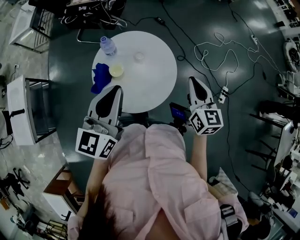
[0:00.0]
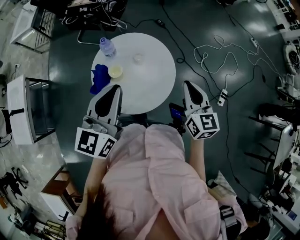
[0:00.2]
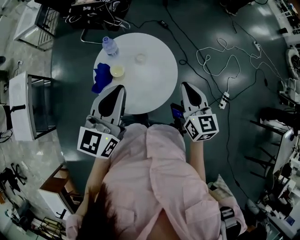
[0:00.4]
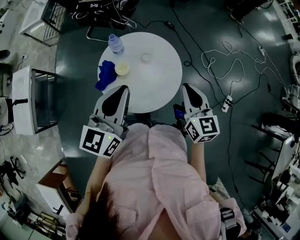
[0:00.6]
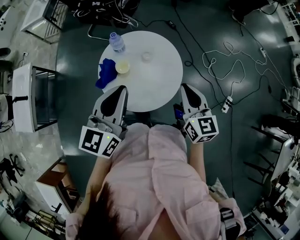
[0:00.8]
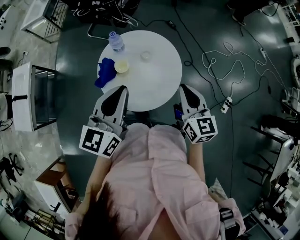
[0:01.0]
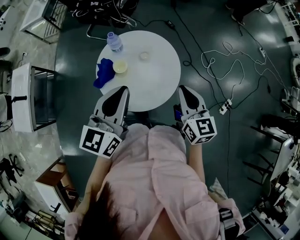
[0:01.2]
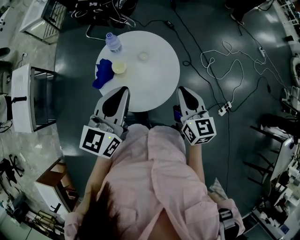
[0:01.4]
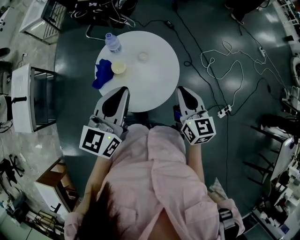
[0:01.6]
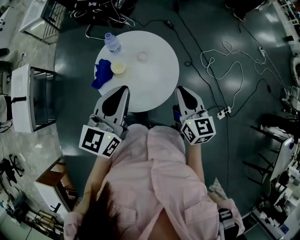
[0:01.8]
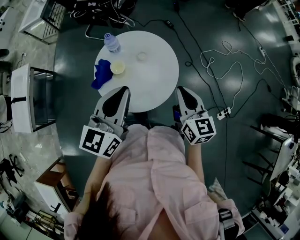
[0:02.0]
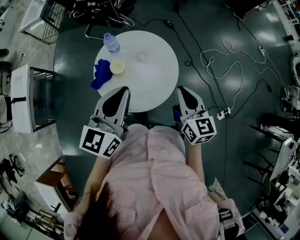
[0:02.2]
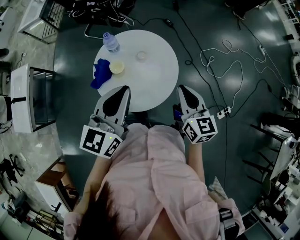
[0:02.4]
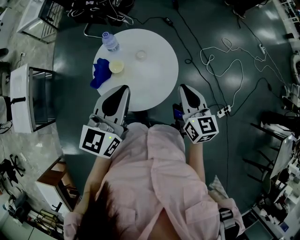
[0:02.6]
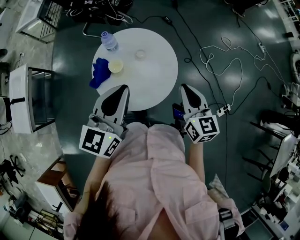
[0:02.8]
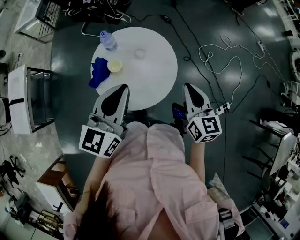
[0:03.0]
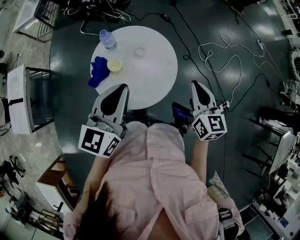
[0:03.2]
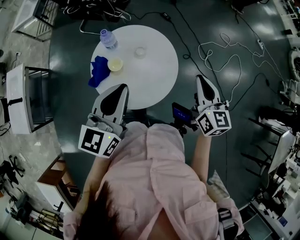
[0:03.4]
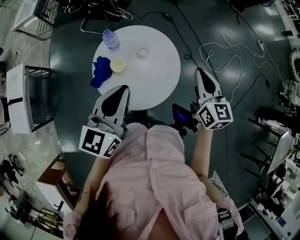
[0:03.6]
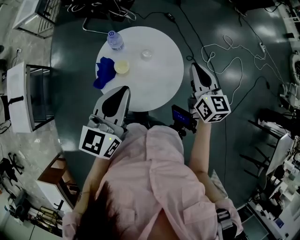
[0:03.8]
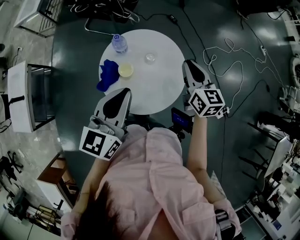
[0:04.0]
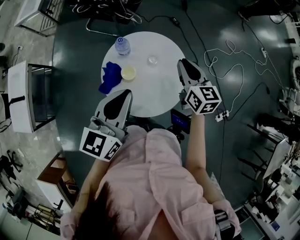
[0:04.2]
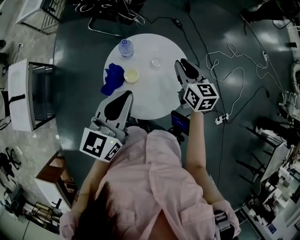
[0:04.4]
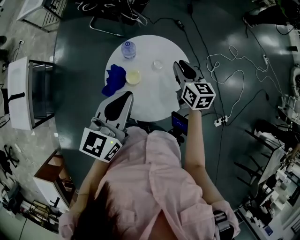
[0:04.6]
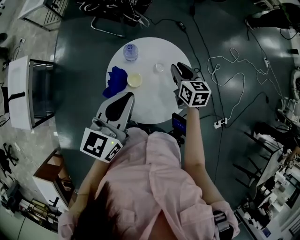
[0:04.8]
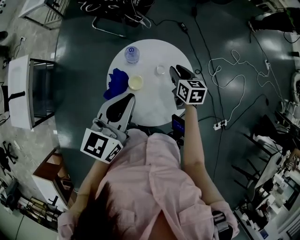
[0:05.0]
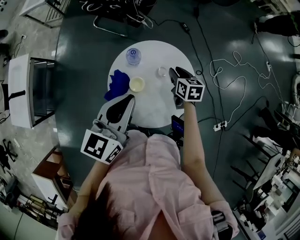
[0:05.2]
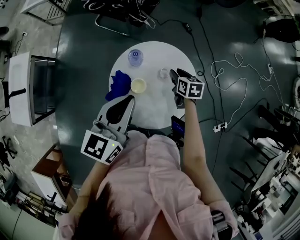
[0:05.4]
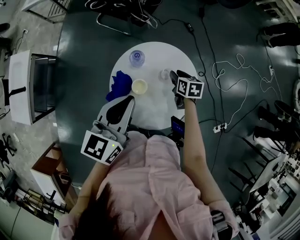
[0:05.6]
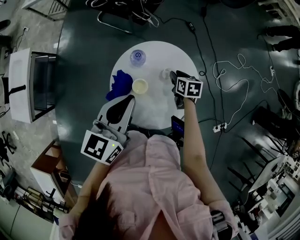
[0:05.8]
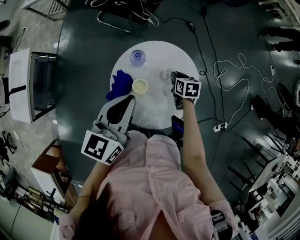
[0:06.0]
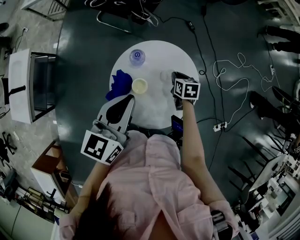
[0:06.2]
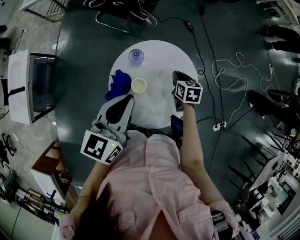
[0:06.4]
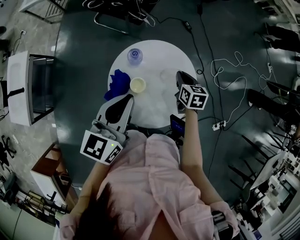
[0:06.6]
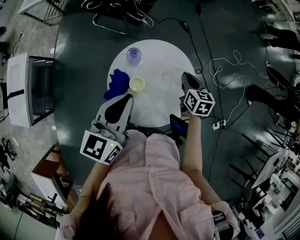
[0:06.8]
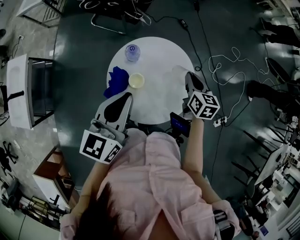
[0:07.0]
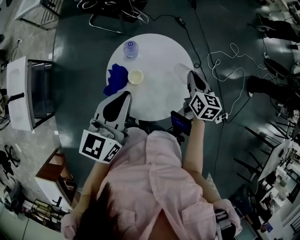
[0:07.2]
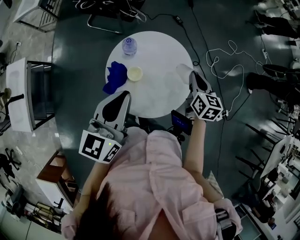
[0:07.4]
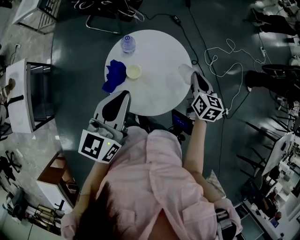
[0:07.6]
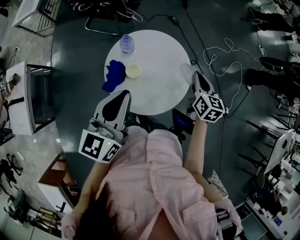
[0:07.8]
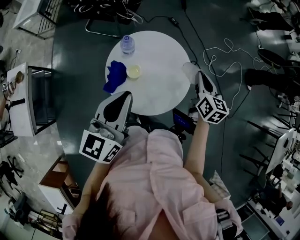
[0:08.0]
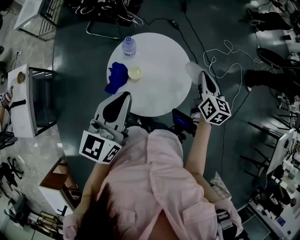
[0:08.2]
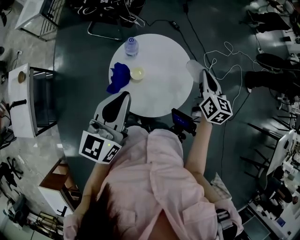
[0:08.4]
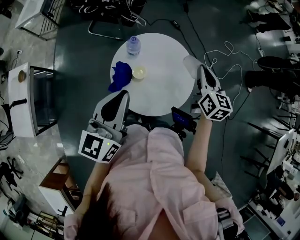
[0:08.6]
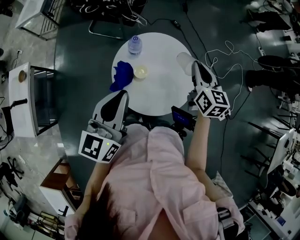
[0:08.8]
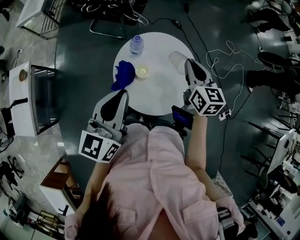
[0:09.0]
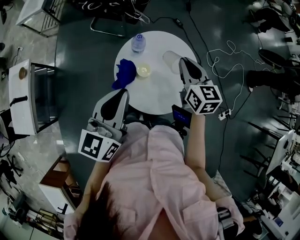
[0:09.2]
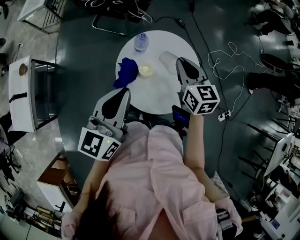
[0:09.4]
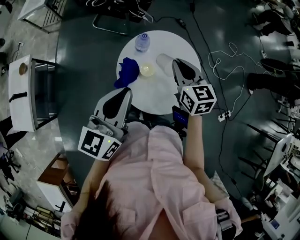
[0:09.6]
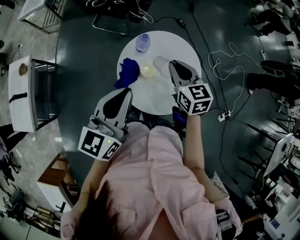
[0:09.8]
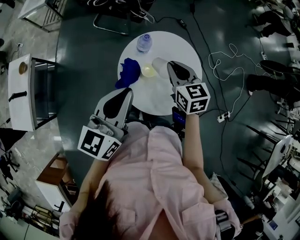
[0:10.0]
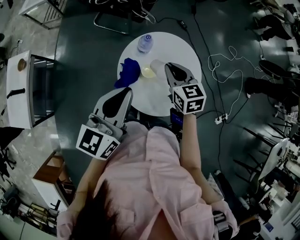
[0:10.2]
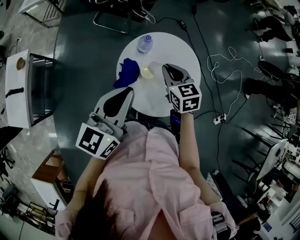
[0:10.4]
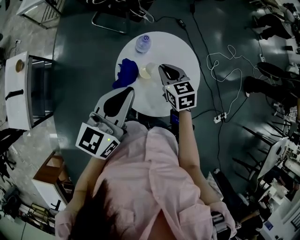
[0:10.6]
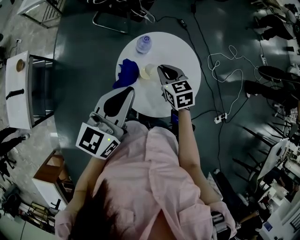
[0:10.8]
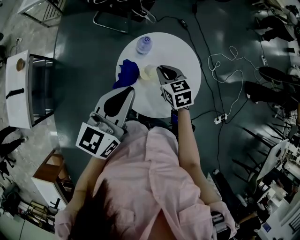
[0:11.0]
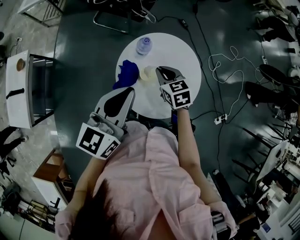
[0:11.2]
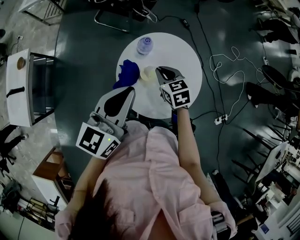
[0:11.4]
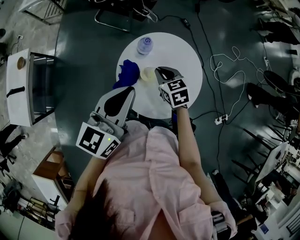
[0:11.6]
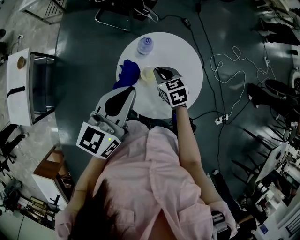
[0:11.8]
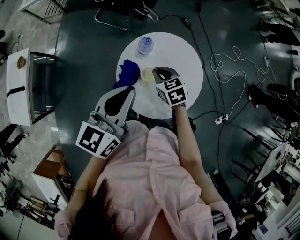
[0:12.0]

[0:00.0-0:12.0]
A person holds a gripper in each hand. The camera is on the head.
0:00.0 to 0:03.0: The grippers make only small movements.
0:03.0 to 0:04.4: The left gripper moves to the left, roughly 5 cm; the right gripper heads forward and to the left, covering some 20 cm.
0:04.4 to 0:06.0: The left gripper shifts about 5 cm forward, while the right gripper travels downward by some 20 cm, and tips its fingers downward by about 30 degrees.
0:06.0 to 0:07.6: The left gripper moves backward, about 5 cm. The right gripper goes some 20 cm upward, to the right and backward, and swivels approximately 30 degrees.
0:07.6 to 0:09.0: The right gripper heads to the left and upward, covering about 15 cm. Meanwhile the left gripper shifts by approximately 5 cm.
0:09.0 to 0:10.4: The right gripper shifts approximately 15 cm to the left and downward, and rotates roughly 20 degrees.
0:10.4 to 0:12.0: The right gripper heads downward, covering roughly 10 cm.

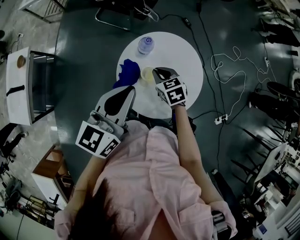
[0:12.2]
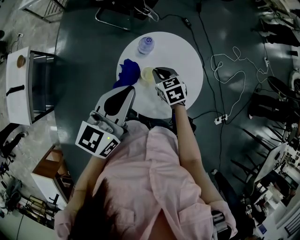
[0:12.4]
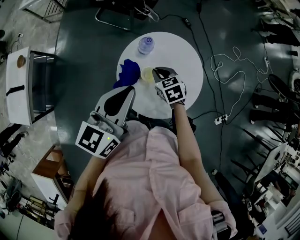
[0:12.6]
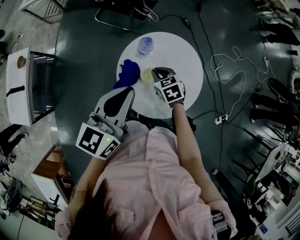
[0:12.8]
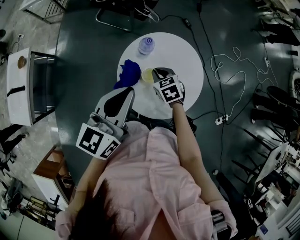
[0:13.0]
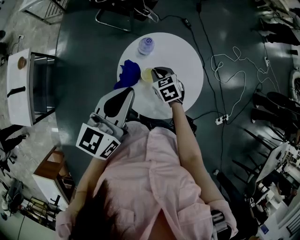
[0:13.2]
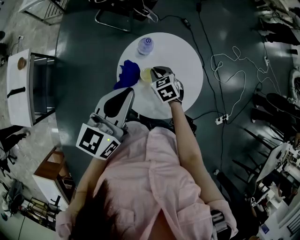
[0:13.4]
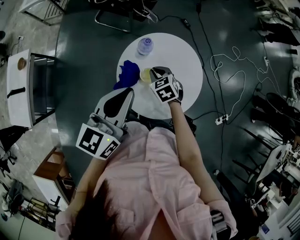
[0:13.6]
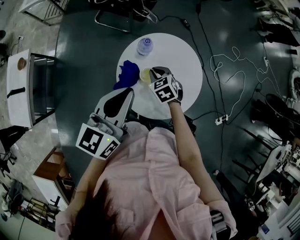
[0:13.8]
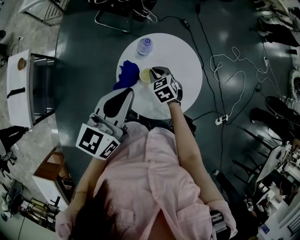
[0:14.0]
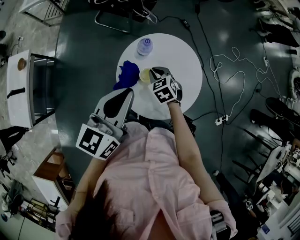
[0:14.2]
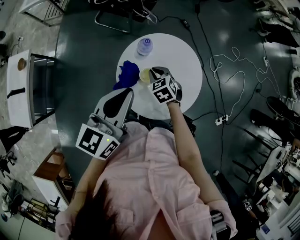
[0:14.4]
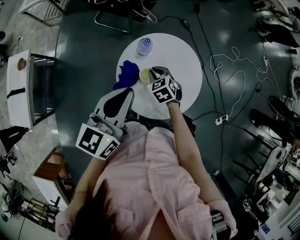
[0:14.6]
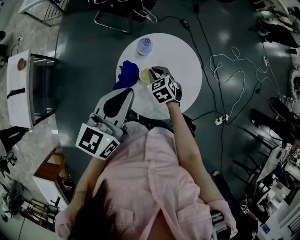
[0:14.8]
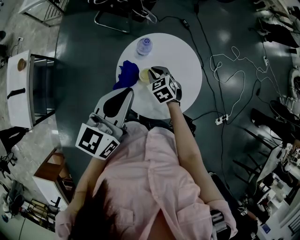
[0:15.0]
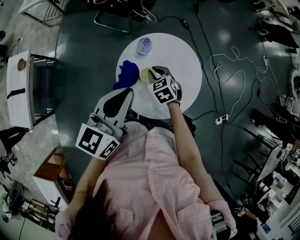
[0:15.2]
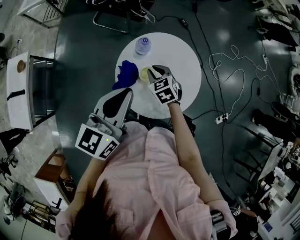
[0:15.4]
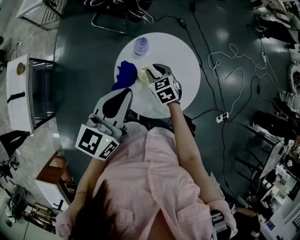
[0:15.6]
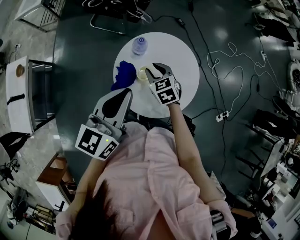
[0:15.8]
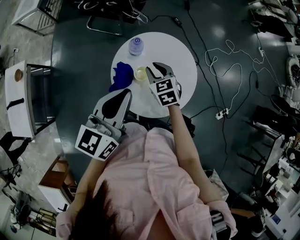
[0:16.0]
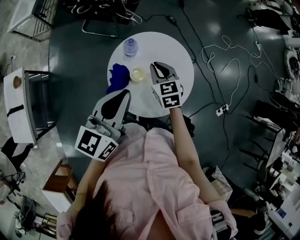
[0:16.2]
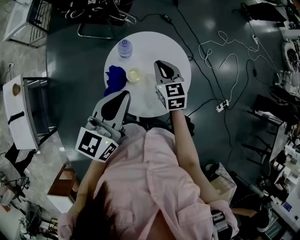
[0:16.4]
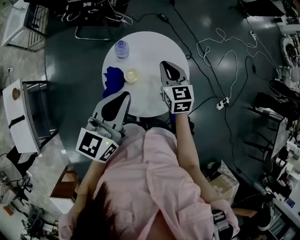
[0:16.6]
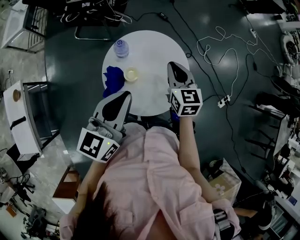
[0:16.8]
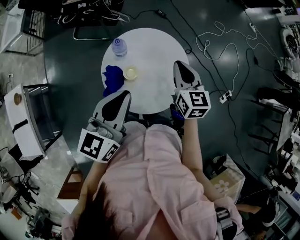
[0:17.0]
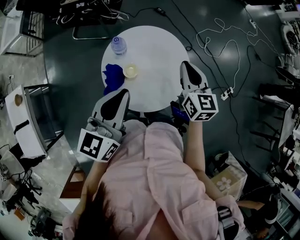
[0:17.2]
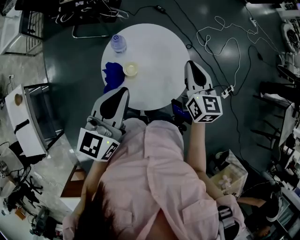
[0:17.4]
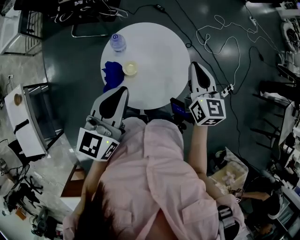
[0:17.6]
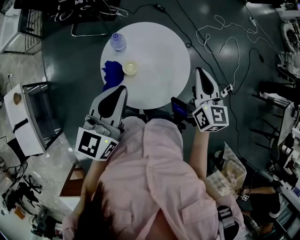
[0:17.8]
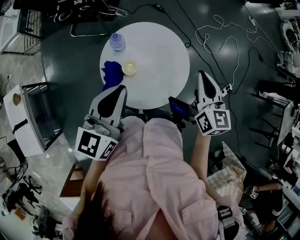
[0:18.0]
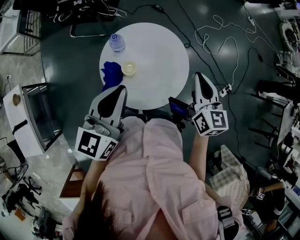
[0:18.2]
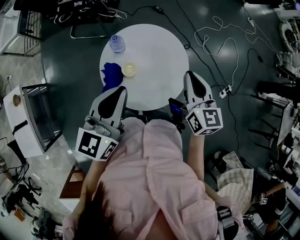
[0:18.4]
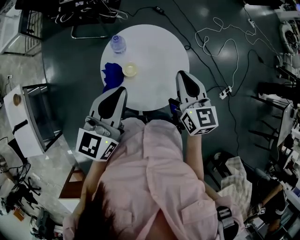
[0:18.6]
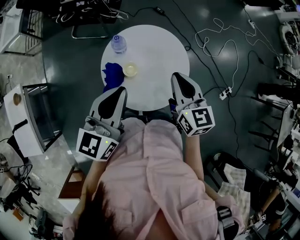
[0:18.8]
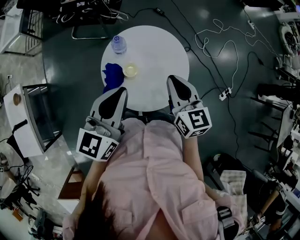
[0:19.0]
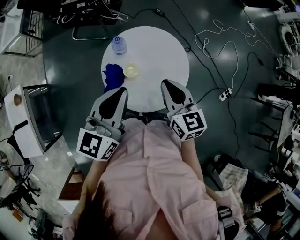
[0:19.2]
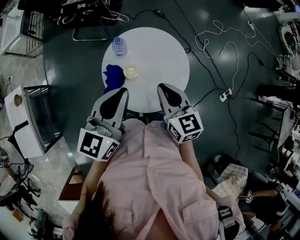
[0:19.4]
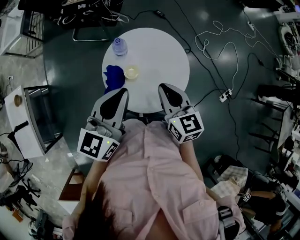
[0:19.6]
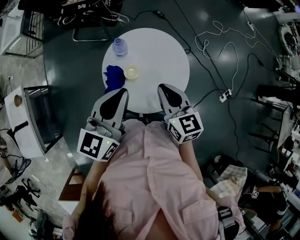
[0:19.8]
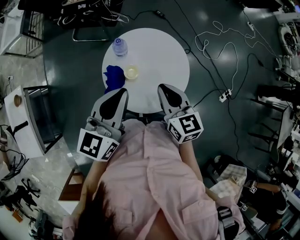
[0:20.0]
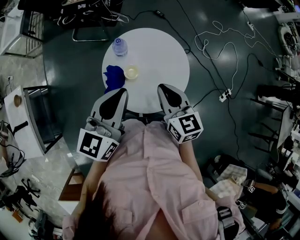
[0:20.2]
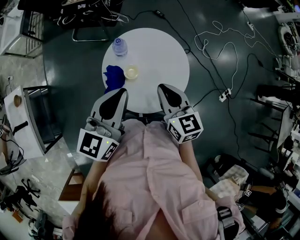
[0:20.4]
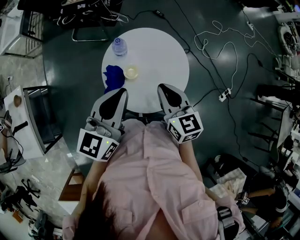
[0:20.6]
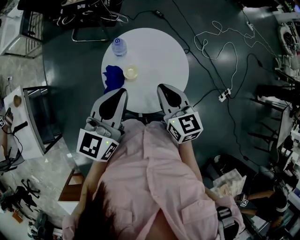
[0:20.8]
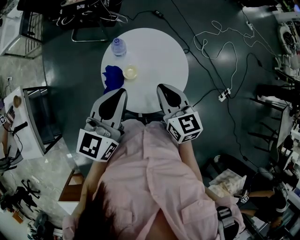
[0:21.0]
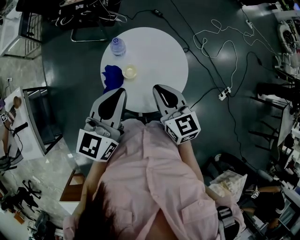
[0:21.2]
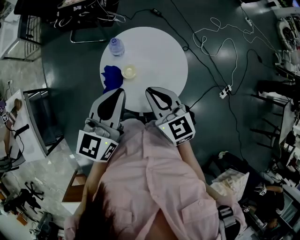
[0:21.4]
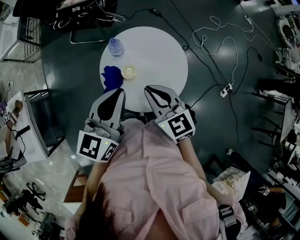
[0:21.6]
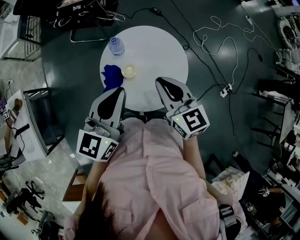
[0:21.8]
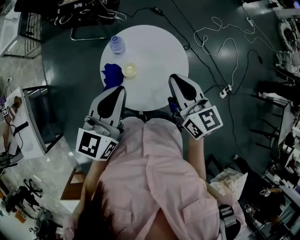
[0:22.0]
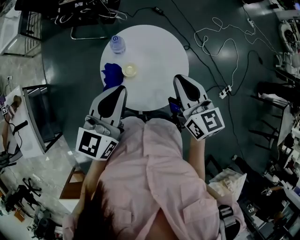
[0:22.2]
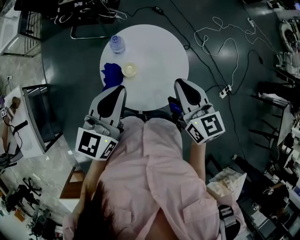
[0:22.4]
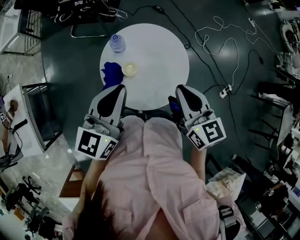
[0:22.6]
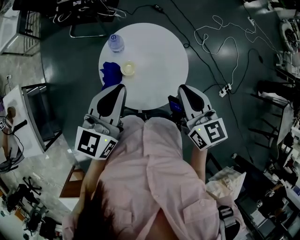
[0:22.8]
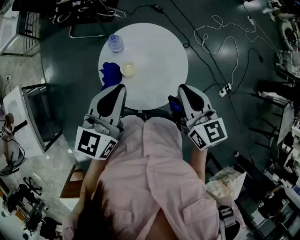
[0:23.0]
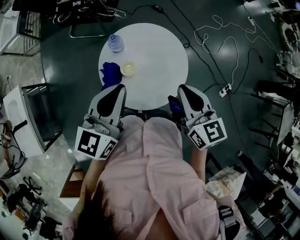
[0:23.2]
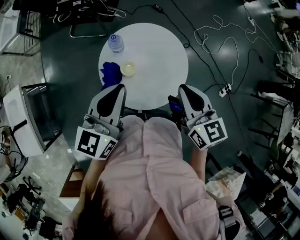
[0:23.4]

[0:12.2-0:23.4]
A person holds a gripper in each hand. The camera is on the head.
0:12.2 to 0:13.8: The grippers make only small movements.
0:13.8 to 0:15.4: The two grippers keep their place.
0:15.4 to 0:17.0: The left gripper is displaced to the right by approximately 5 cm; the right gripper shifts approximately 20 cm to the right and upward, and changes its angle by about 50 degrees.
0:17.0 to 0:18.6: The right gripper travels backward by about 5 cm.
0:18.6 to 0:20.2: The right gripper travels to the left by about 5 cm.
0:20.2 to 0:21.8: The grippers stay close to where they were, moving slightly.
0:21.8 to 0:23.4: The right gripper travels to the right by approximately 5 cm.

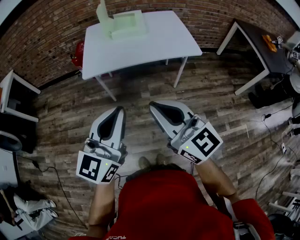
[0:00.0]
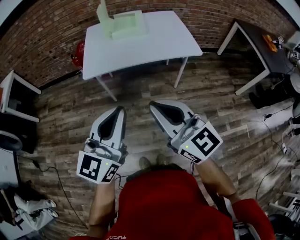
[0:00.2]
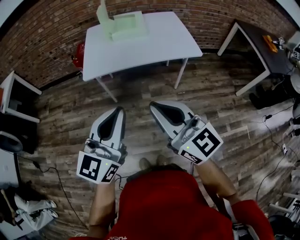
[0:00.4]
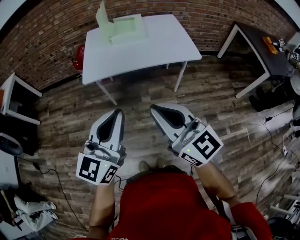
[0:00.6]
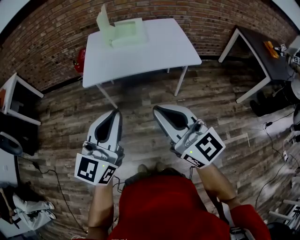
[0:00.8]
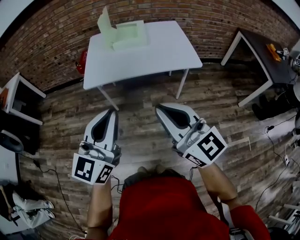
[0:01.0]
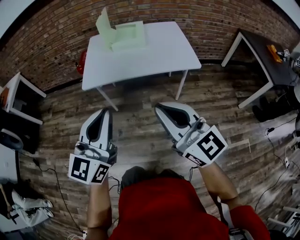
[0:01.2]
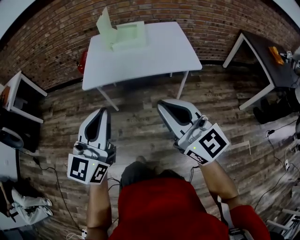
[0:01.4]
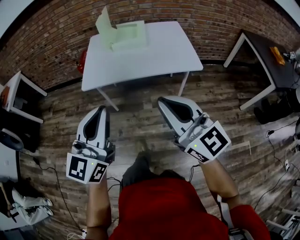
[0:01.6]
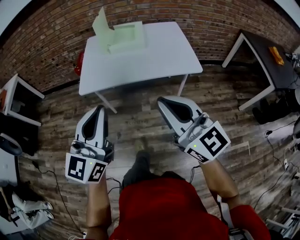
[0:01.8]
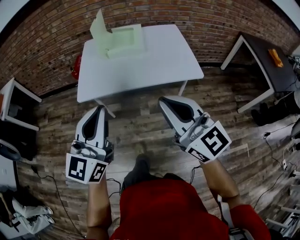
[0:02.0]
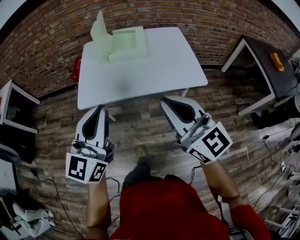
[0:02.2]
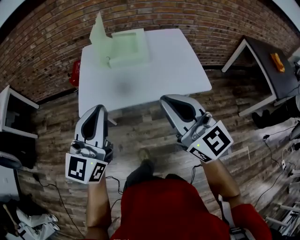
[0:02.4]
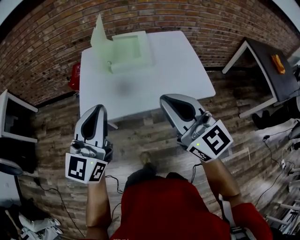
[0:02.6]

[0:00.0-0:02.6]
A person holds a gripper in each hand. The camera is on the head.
0:00.0 to 0:01.2: The right gripper moves to the right, some 10 cm.
0:01.2 to 0:02.6: Both grippers move forward, approximately 30 cm.
